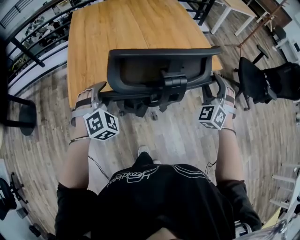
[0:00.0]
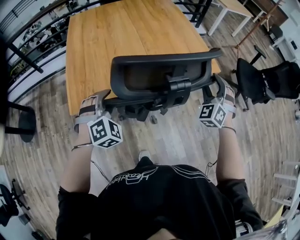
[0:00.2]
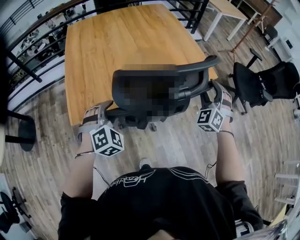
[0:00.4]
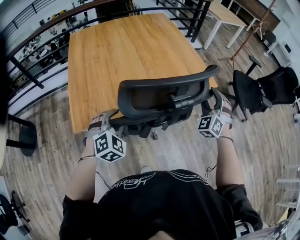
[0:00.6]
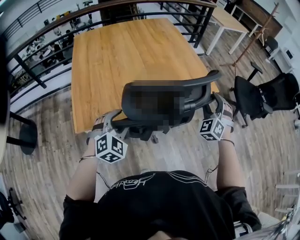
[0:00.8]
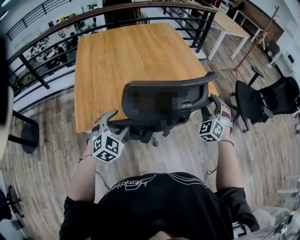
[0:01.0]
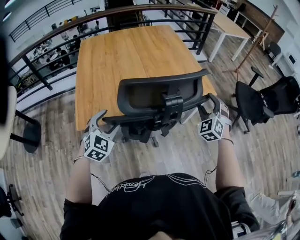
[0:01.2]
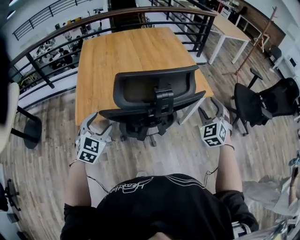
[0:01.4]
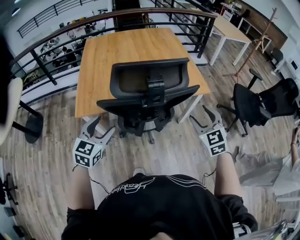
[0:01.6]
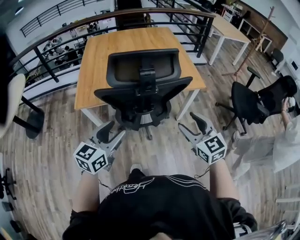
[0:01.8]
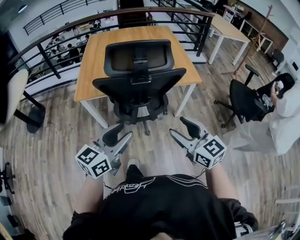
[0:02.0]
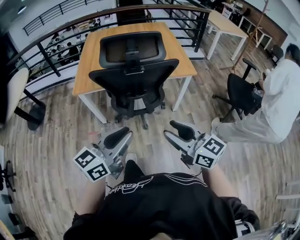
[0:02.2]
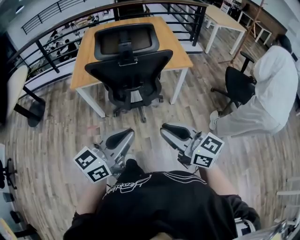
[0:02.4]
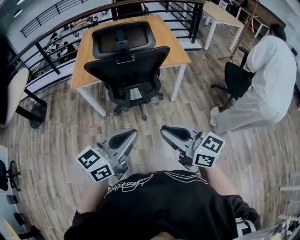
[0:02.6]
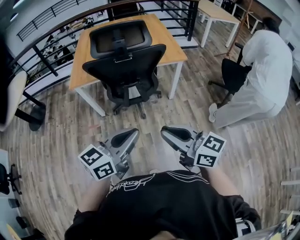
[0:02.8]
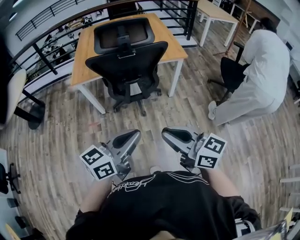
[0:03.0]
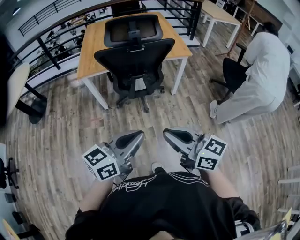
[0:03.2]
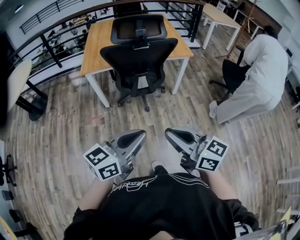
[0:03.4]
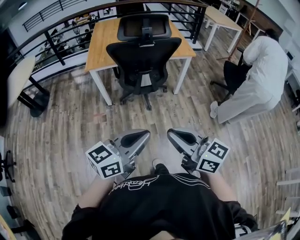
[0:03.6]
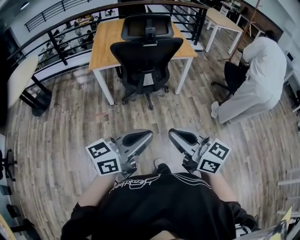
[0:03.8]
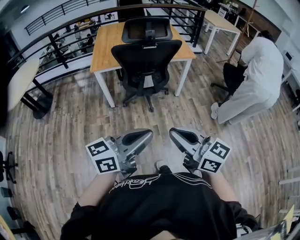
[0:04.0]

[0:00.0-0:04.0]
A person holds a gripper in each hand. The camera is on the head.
0.0 to 1.4 s: The left gripper moves backward, approximately 5 cm, and rotates about 30 degrees.
1.4 to 2.6 s: The left gripper heads backward and to the right, covering some 50 cm, swivels approximately 60 degrees, and closes up, while the right gripper shifts some 40 cm backward, turns by roughly 80 degrees, and closes its fingers.
2.6 to 4.0 s: The grippers both shift backward and to the left by approximately 25 cm.

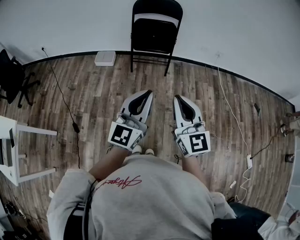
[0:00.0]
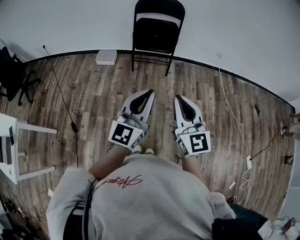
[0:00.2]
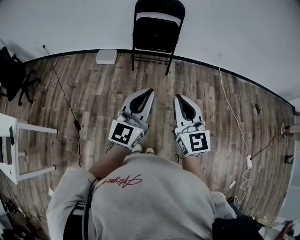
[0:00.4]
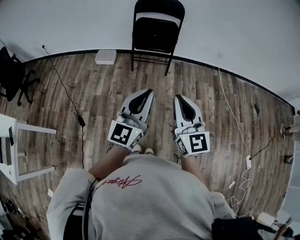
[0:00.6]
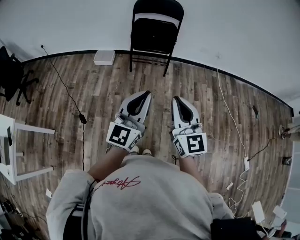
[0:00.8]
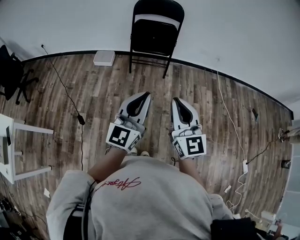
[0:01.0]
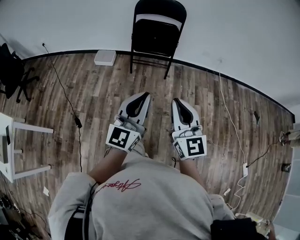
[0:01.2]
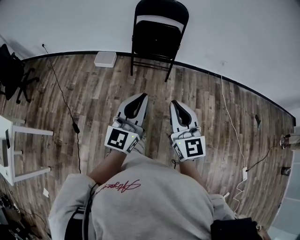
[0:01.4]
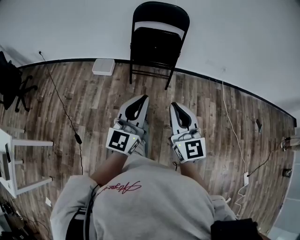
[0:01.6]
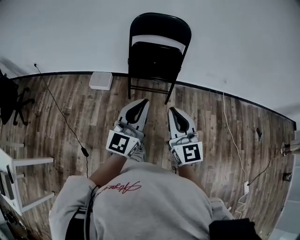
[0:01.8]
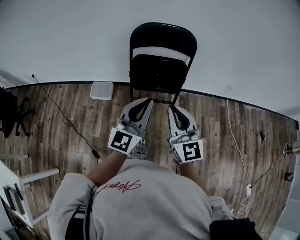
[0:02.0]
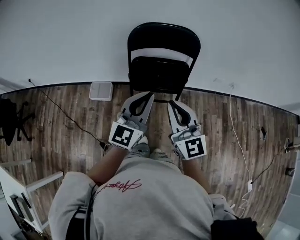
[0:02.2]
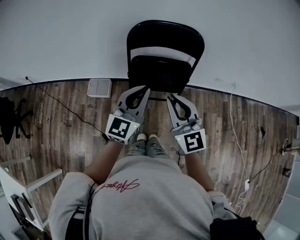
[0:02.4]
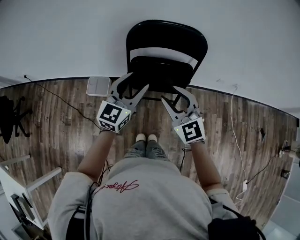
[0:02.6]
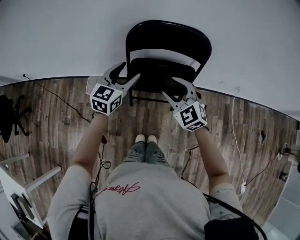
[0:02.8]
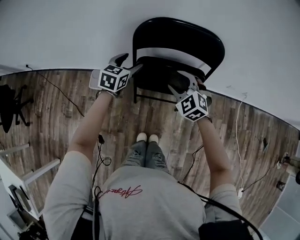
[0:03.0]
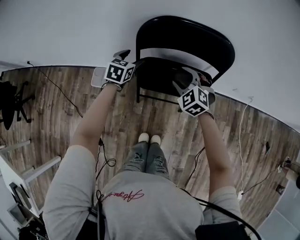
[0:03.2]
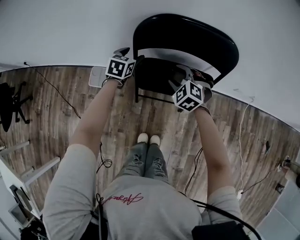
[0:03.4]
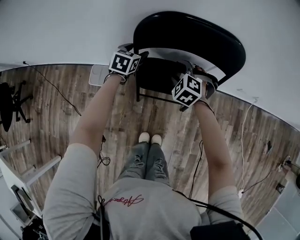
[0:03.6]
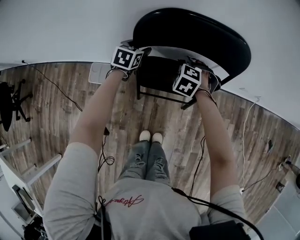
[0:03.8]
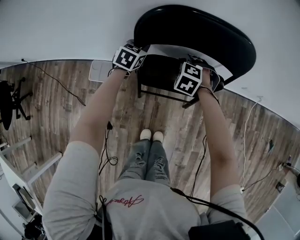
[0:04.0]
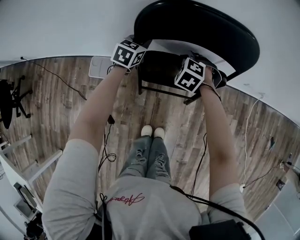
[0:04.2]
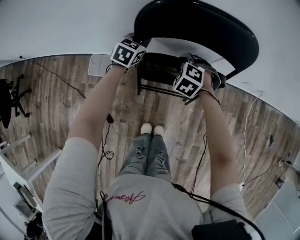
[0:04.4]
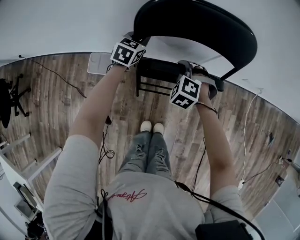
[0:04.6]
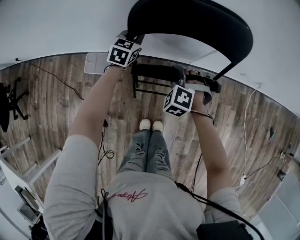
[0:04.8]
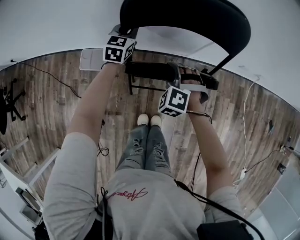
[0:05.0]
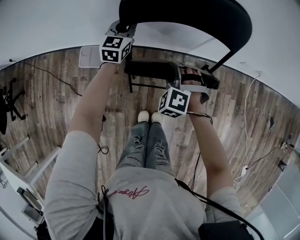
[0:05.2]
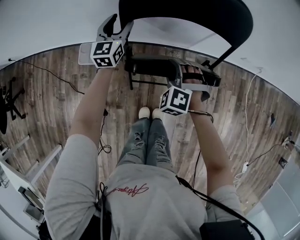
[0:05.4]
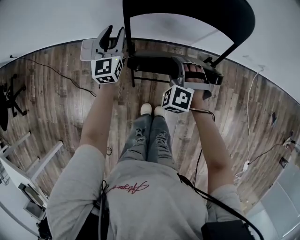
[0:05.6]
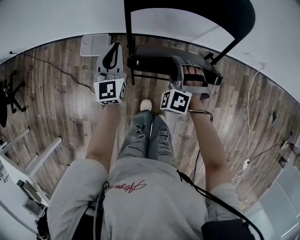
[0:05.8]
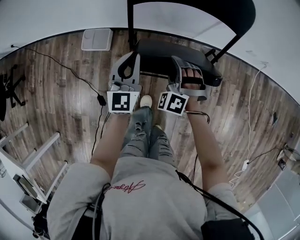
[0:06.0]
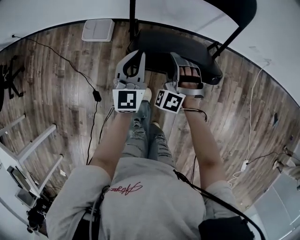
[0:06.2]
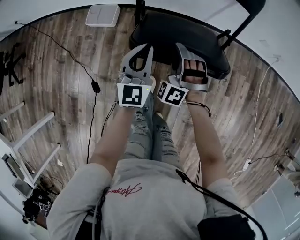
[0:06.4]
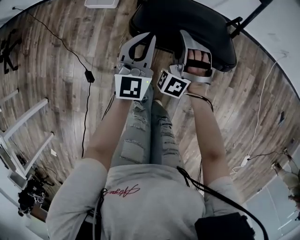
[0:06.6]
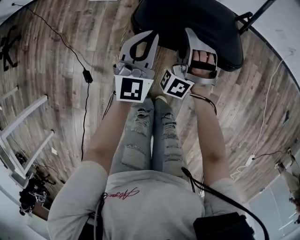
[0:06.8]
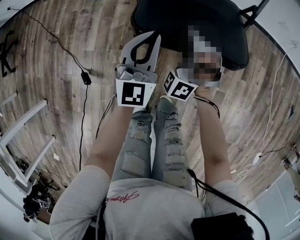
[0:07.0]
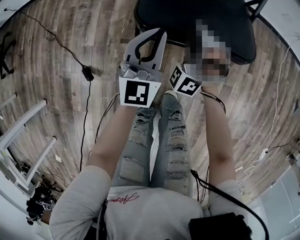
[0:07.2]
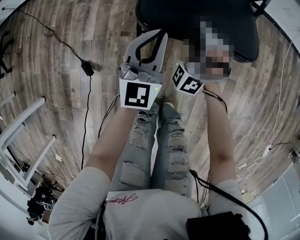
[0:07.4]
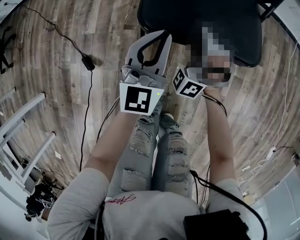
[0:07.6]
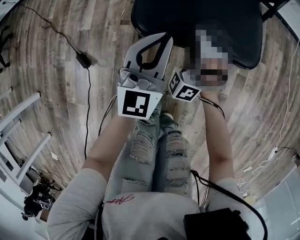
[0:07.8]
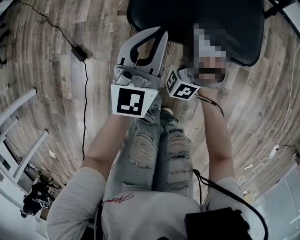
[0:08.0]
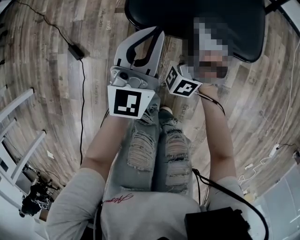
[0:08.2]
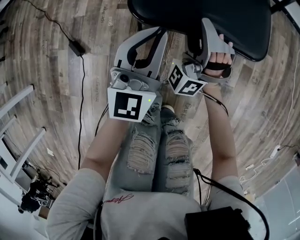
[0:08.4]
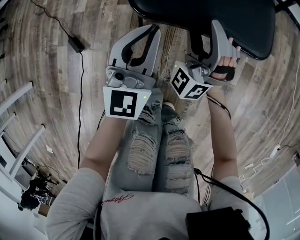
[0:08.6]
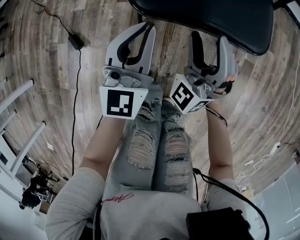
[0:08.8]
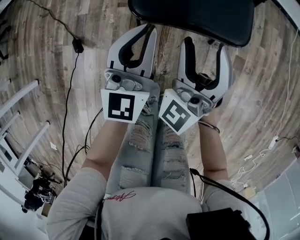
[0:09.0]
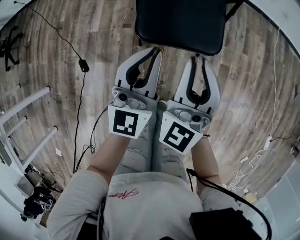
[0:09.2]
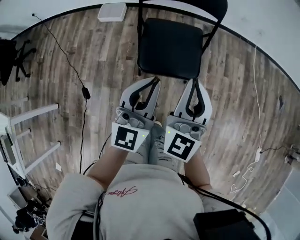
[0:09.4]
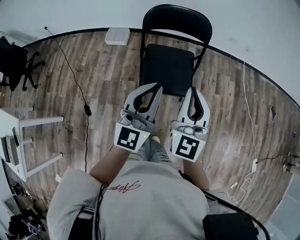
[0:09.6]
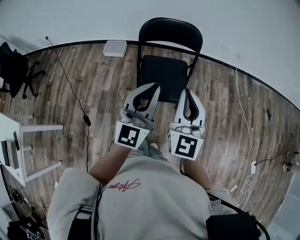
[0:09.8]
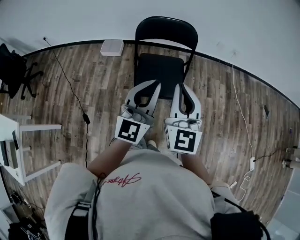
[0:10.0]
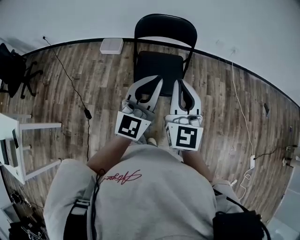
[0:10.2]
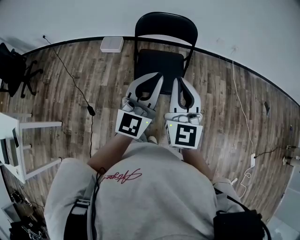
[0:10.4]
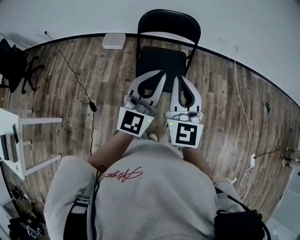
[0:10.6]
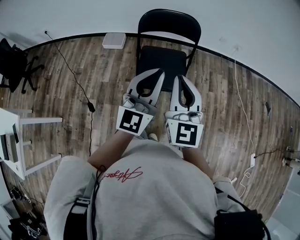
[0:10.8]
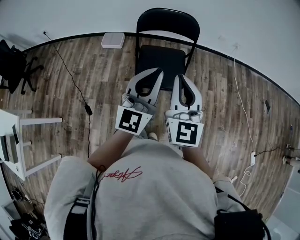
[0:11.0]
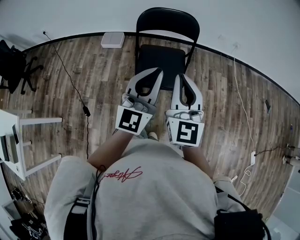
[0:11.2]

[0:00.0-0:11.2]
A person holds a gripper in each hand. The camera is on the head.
0.0 to 1.6 s: Both grippers move forward, approximately 15 cm.
1.6 to 3.2 s: The two grippers travel together, forward, some 60 cm. The right gripper tilts its fingers roughly 40 degrees downward, and opens its fingers. The left gripper tilts its fingers approximately 50 degrees downward, and opens its fingers.
3.2 to 4.8 s: The left gripper shifts some 10 cm forward and downward, and closes its fingers. Meanwhile the right gripper travels downward by some 10 cm, and rotates approximately 20 degrees.
4.8 to 6.4 s: The right gripper moves backward, roughly 20 cm, and tips its fingers upward by about 30 degrees; the left gripper shifts about 35 cm backward, rotates approximately 30 degrees, and opens, then closes again.
6.4 to 8.0 s: The grippers both shift backward and downward by about 35 cm.
8.0 to 9.6 s: Both grippers move upward, roughly 50 cm. The right gripper rolls clockwise, seen from behind, by about 70 degrees, and closes up.
9.6 to 11.2 s: The left gripper moves roughly 5 cm; the right gripper ends up about 5 cm from where it was.

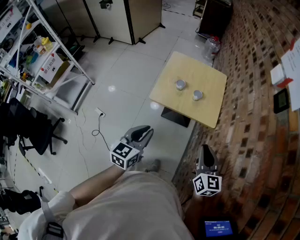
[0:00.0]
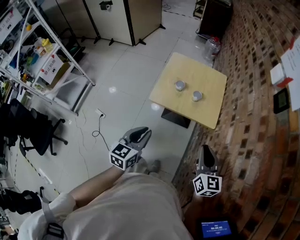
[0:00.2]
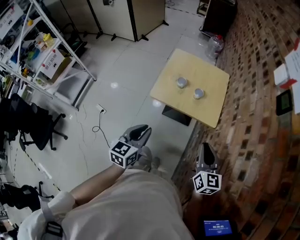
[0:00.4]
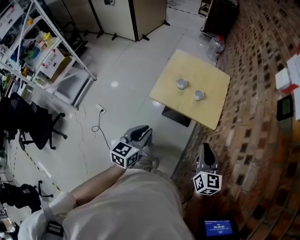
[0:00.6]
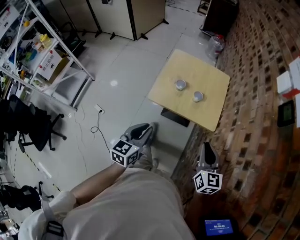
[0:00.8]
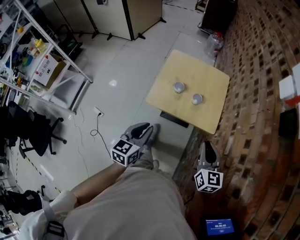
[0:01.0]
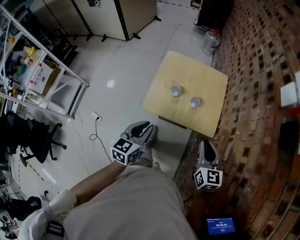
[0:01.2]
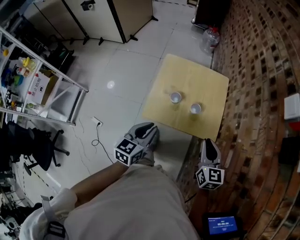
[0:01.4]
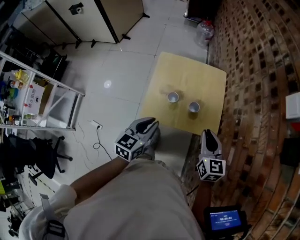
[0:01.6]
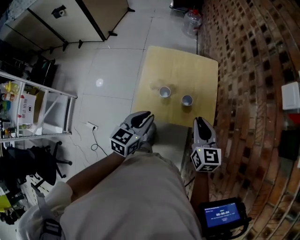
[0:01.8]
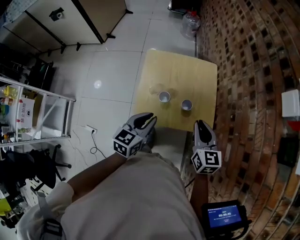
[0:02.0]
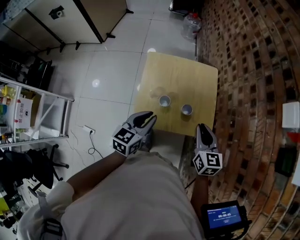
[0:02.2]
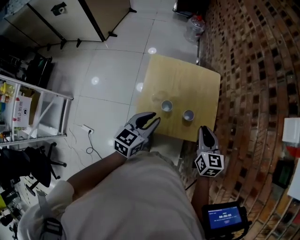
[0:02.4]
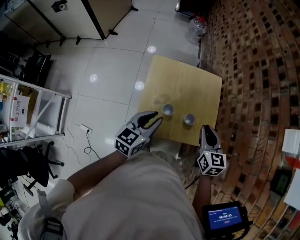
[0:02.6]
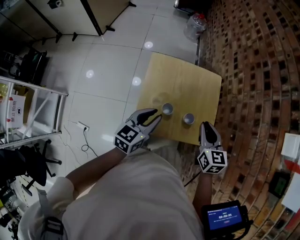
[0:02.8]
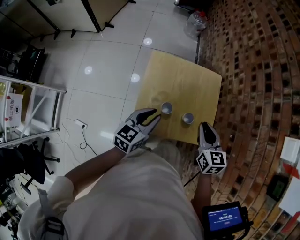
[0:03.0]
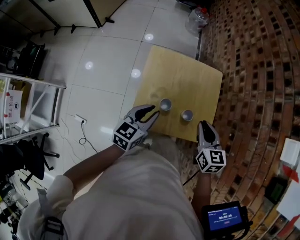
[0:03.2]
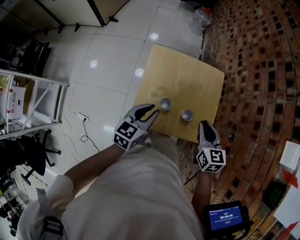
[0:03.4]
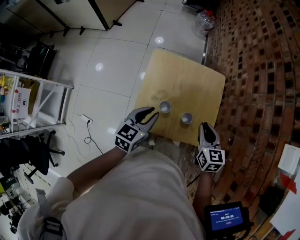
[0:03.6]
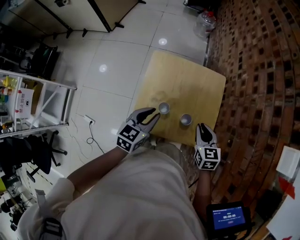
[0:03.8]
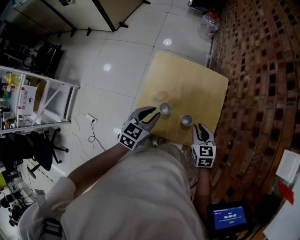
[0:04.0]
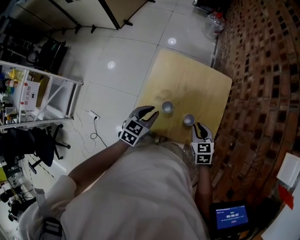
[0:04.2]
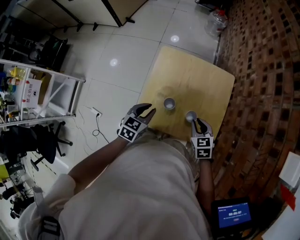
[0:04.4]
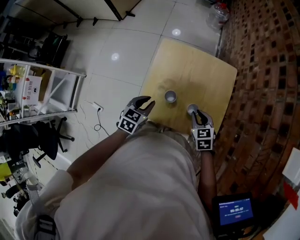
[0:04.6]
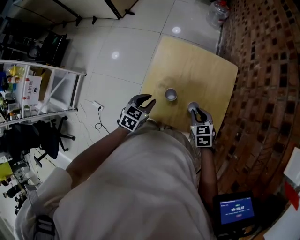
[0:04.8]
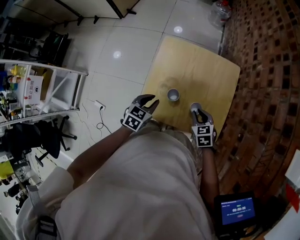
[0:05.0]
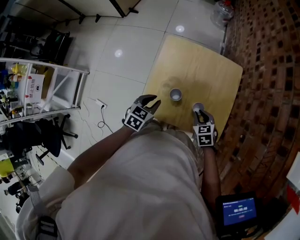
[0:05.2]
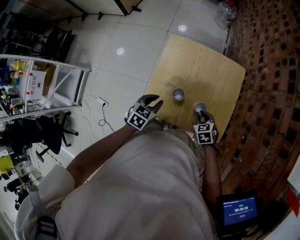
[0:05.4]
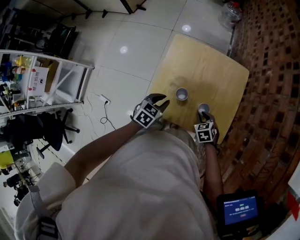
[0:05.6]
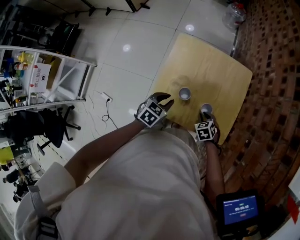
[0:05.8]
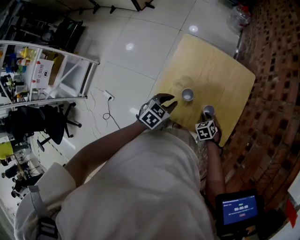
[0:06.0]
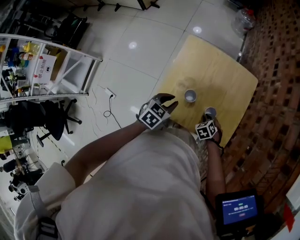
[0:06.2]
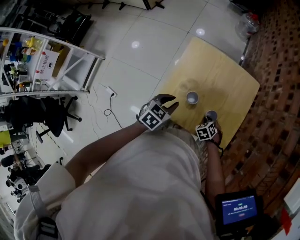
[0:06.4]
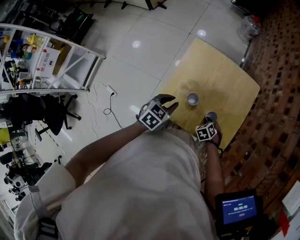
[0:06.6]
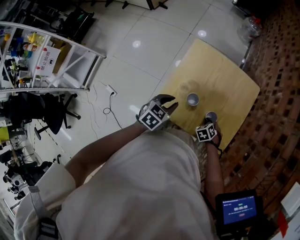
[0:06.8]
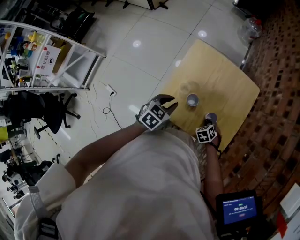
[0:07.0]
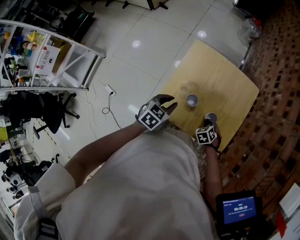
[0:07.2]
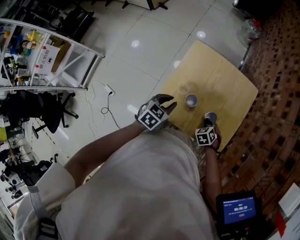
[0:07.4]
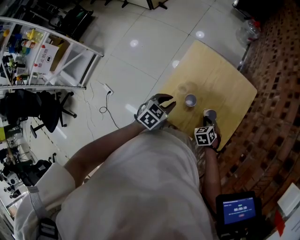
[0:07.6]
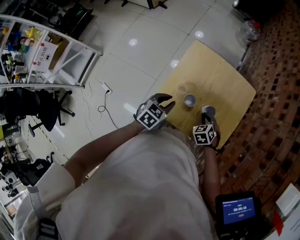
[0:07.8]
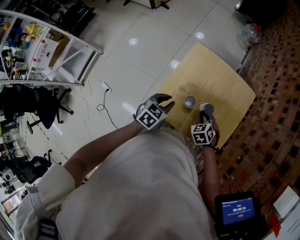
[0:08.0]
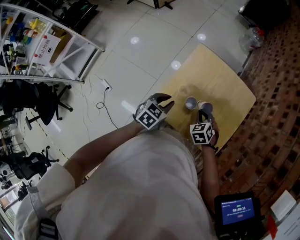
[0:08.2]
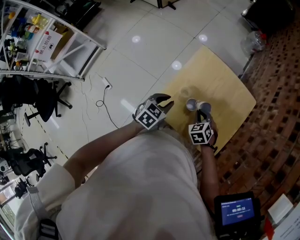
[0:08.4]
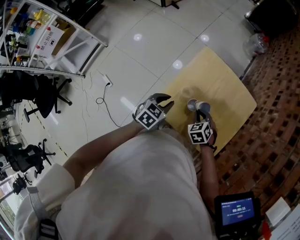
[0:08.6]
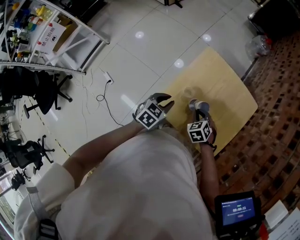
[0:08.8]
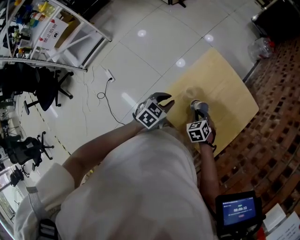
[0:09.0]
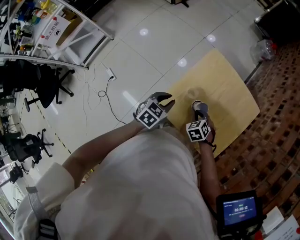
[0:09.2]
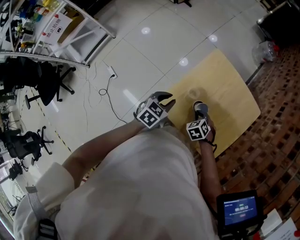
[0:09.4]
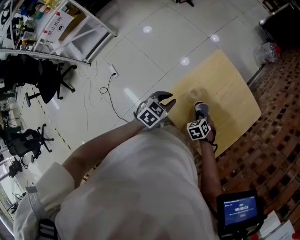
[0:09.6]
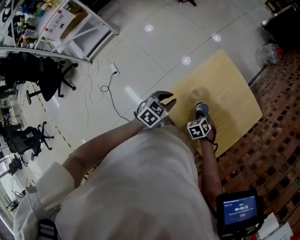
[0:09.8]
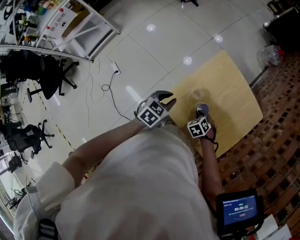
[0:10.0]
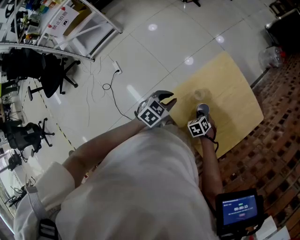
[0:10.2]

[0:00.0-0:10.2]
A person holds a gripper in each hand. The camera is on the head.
0.0 to 1.4 s: The grippers both shift forward by approximately 20 cm.
1.4 to 3.0 s: The left gripper heads forward, covering approximately 20 cm. Meanwhile the right gripper moves forward and to the left, about 20 cm.
3.0 to 4.4 s: The left gripper is displaced downward by about 10 cm, and rotates about 20 degrees, while the right gripper heads downward, covering some 15 cm, and changes its angle by about 20 degrees.
4.4 to 5.8 s: The left gripper travels downward by some 5 cm. Meanwhile the right gripper moves downward, some 15 cm, and turns by approximately 20 degrees.
5.8 to 7.2 s: The grippers move only a little.
7.2 to 8.8 s: The right gripper heads to the left and upward, covering some 15 cm.
8.8 to 10.2 s: The right gripper moves downward, approximately 10 cm.
